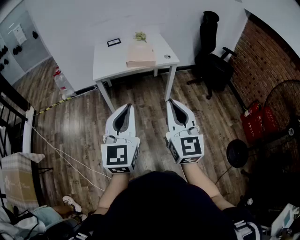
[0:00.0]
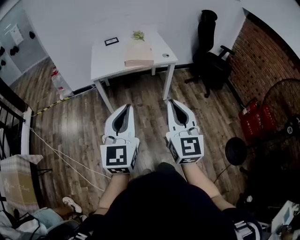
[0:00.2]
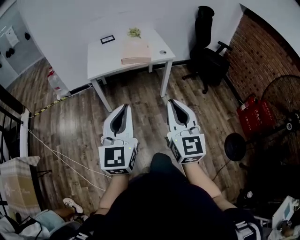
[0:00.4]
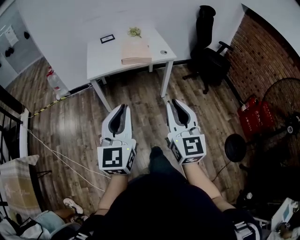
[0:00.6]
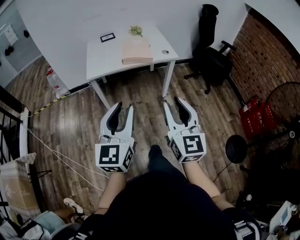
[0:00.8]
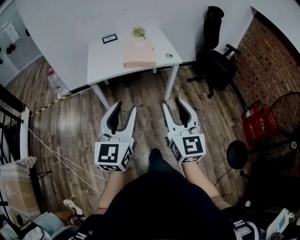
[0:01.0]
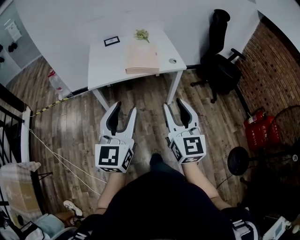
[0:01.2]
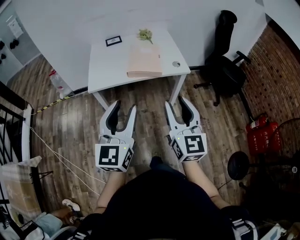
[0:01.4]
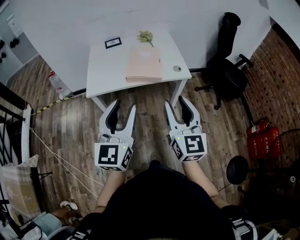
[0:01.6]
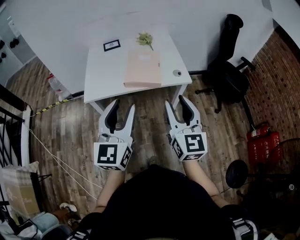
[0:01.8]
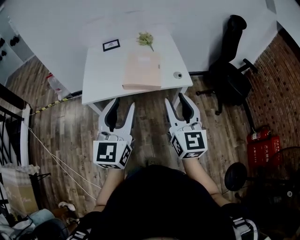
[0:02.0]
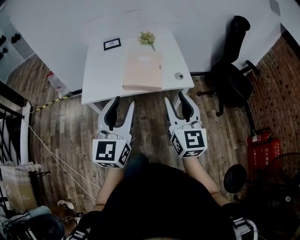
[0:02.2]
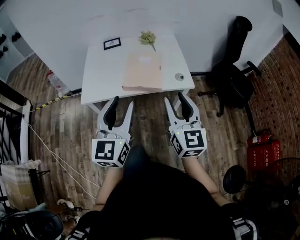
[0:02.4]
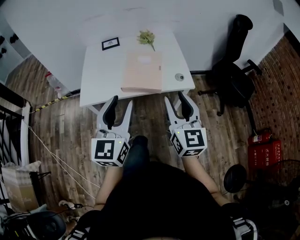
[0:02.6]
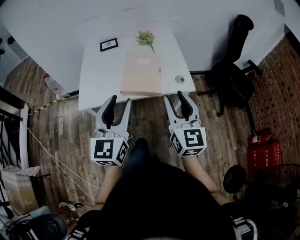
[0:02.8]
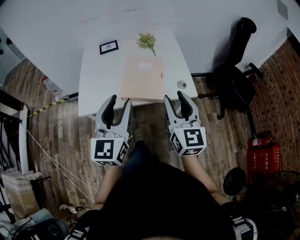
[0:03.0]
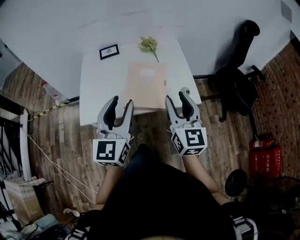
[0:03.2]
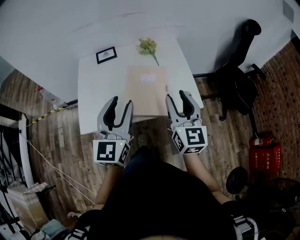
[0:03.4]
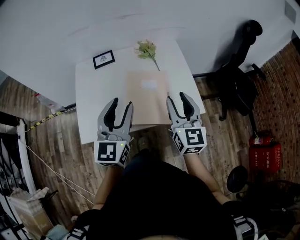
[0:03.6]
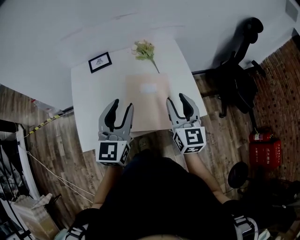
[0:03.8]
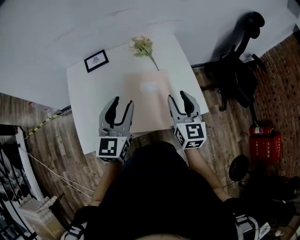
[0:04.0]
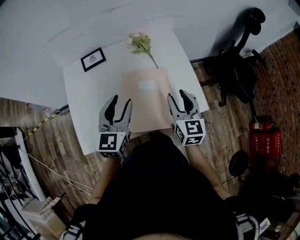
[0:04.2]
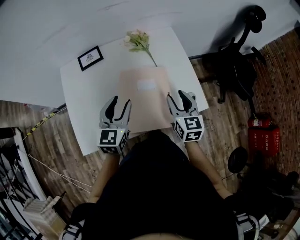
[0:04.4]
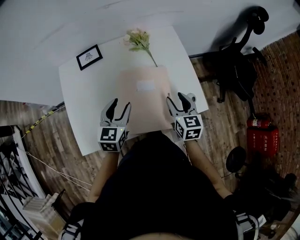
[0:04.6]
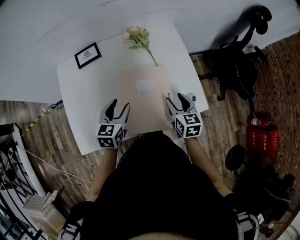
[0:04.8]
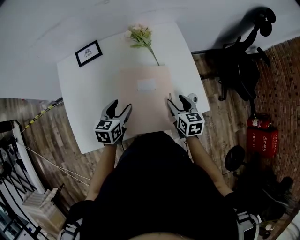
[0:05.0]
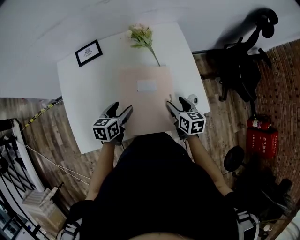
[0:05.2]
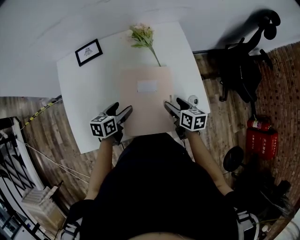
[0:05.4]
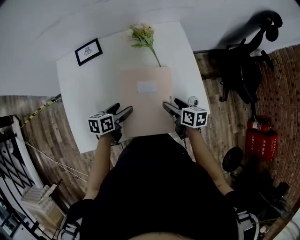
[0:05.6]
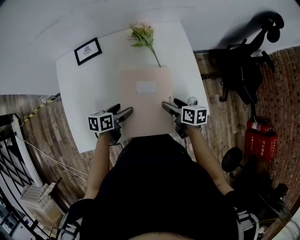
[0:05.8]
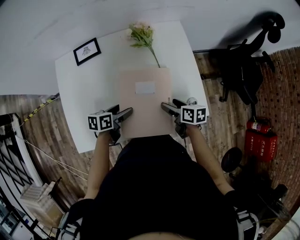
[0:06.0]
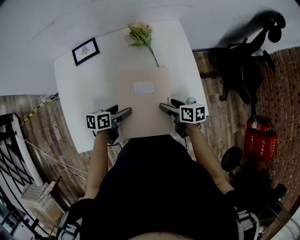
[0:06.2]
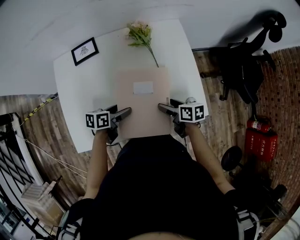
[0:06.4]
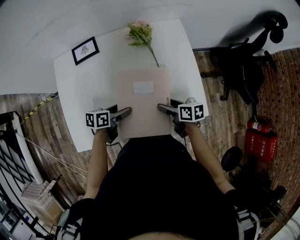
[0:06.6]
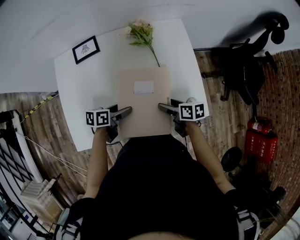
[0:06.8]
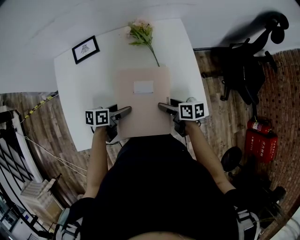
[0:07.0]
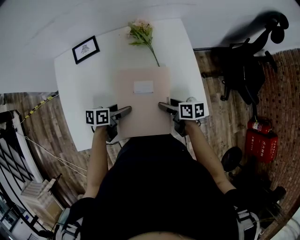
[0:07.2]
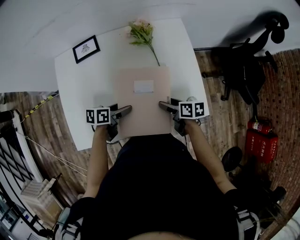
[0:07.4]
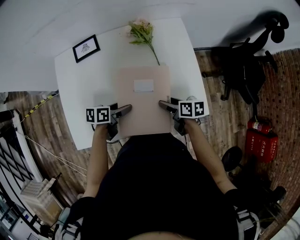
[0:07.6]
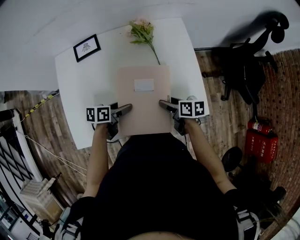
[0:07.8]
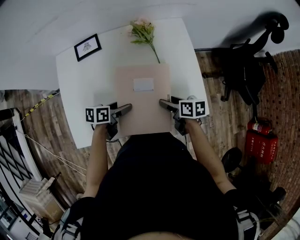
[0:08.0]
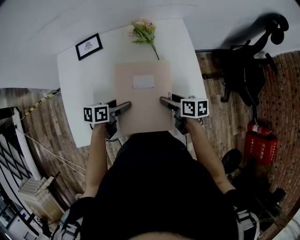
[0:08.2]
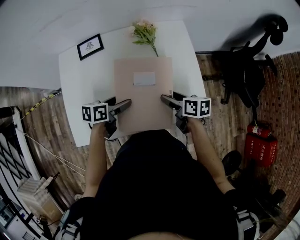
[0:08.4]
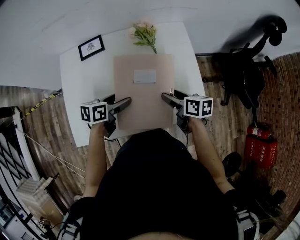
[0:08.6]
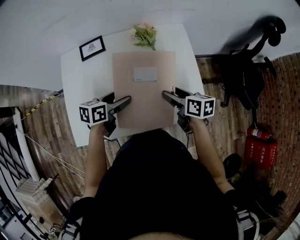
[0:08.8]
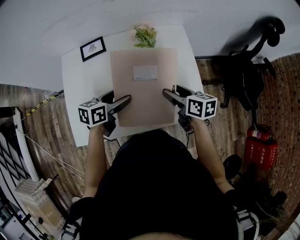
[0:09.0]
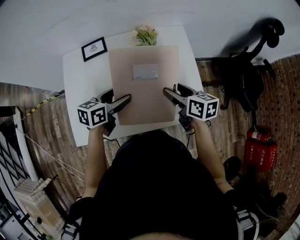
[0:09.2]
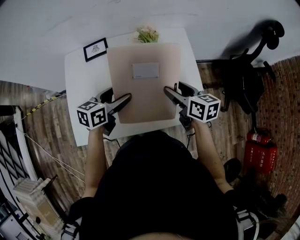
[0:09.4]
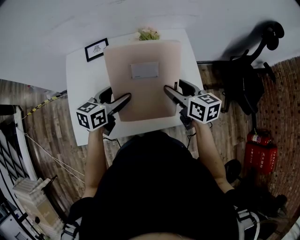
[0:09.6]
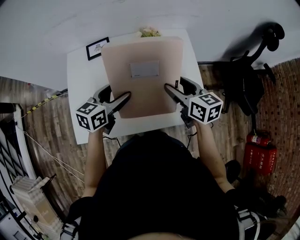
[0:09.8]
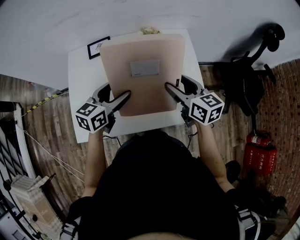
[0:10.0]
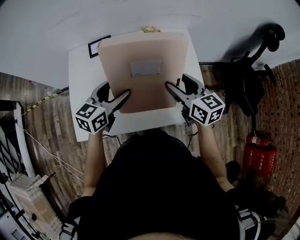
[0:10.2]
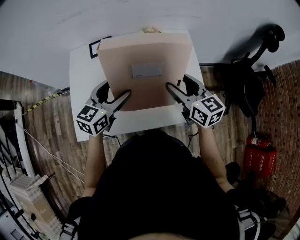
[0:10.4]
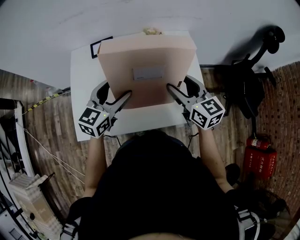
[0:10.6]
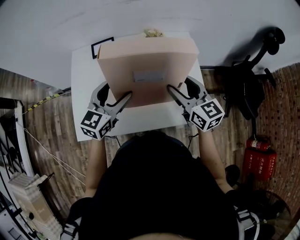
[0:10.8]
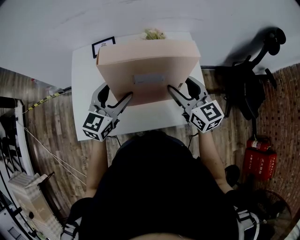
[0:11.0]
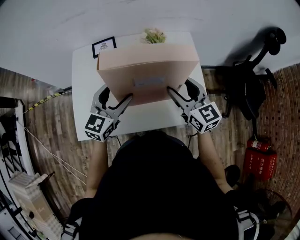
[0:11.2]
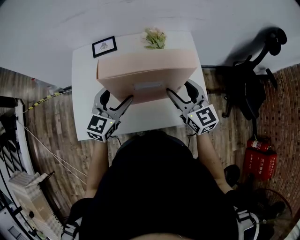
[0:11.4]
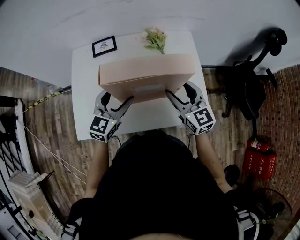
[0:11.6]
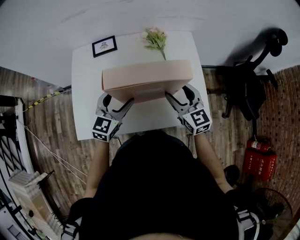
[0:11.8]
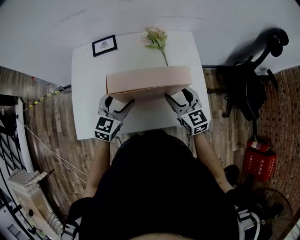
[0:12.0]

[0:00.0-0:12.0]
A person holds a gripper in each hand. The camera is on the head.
0:00.0 to 0:01.6: The grippers both shift forward by about 30 cm. The left gripper opens up; the right gripper opens up.
0:01.6 to 0:03.0: The grippers both shift forward by about 20 cm.
0:03.0 to 0:04.4: Both grippers move forward and downward, approximately 30 cm. The left gripper turns by roughly 20 degrees; the right gripper swivels some 20 degrees.
0:04.4 to 0:06.0: The two grippers go roughly 15 cm downward. The left gripper swivels about 50 degrees, and opens its fingers. Meanwhile the right gripper turns by approximately 50 degrees, and opens its fingers.
0:06.0 to 0:07.6: The grippers make only small movements.
0:07.6 to 0:09.0: The grippers both shift upward by some 10 cm. The left gripper swivels roughly 20 degrees, while the right gripper changes its angle by some 20 degrees.
0:09.0 to 0:10.4: The two grippers go about 10 cm upward. The left gripper turns by some 30 degrees. The right gripper changes its angle by approximately 30 degrees.
0:10.4 to 0:12.0: Both grippers travel together downward, about 10 cm.

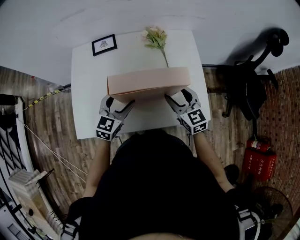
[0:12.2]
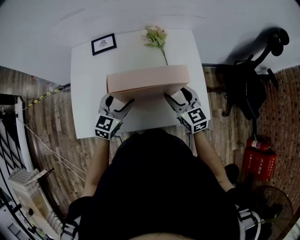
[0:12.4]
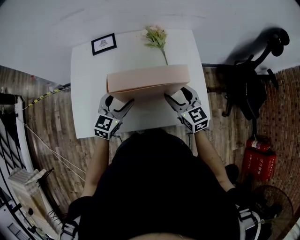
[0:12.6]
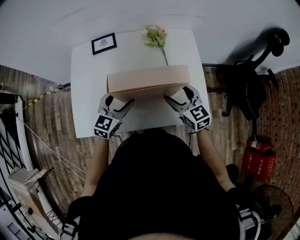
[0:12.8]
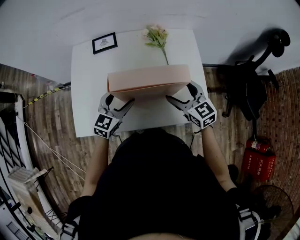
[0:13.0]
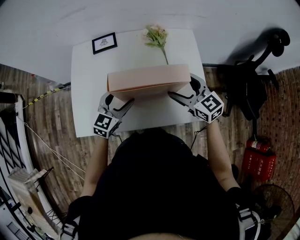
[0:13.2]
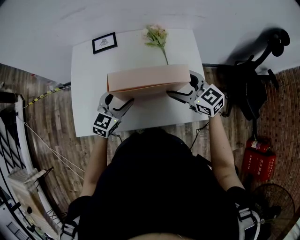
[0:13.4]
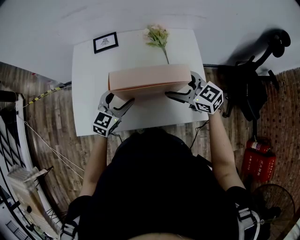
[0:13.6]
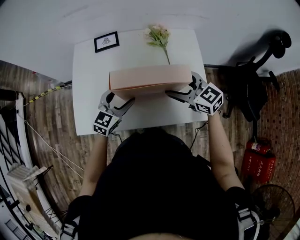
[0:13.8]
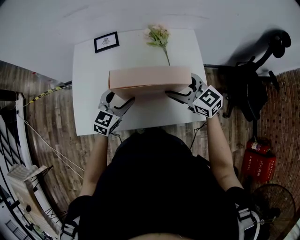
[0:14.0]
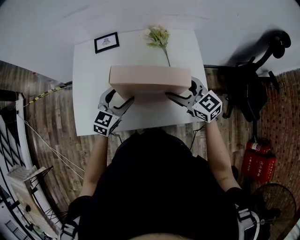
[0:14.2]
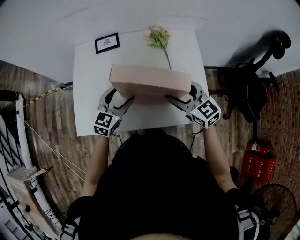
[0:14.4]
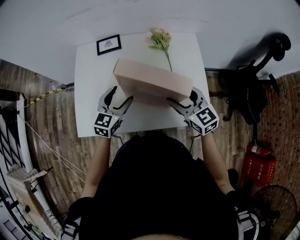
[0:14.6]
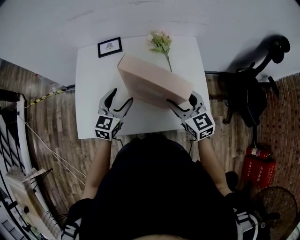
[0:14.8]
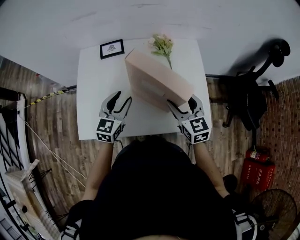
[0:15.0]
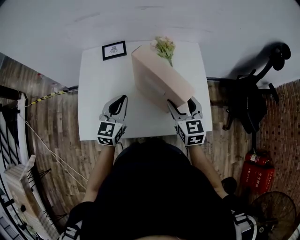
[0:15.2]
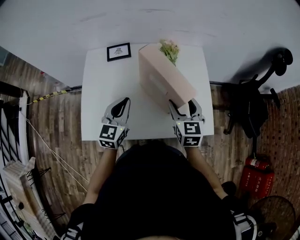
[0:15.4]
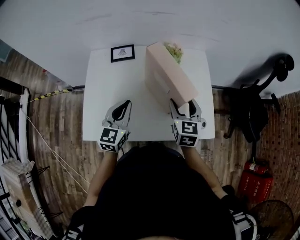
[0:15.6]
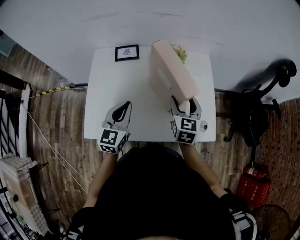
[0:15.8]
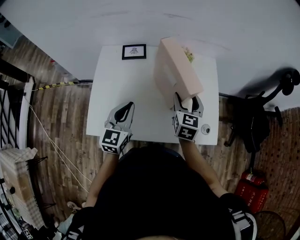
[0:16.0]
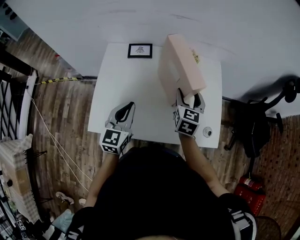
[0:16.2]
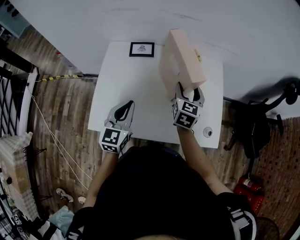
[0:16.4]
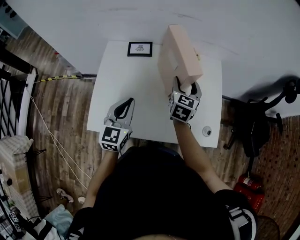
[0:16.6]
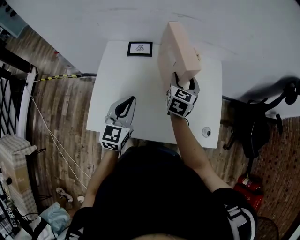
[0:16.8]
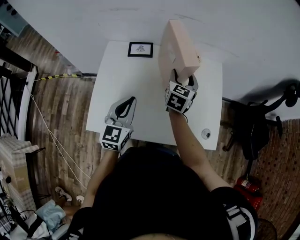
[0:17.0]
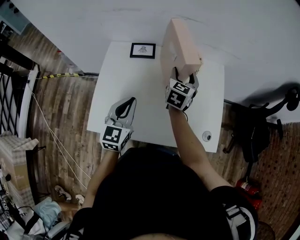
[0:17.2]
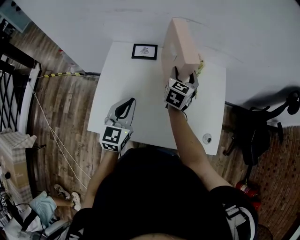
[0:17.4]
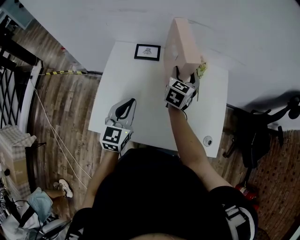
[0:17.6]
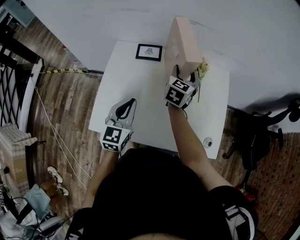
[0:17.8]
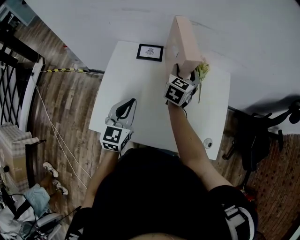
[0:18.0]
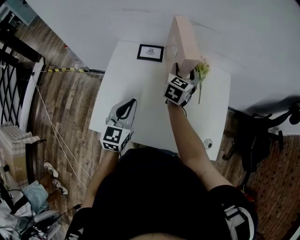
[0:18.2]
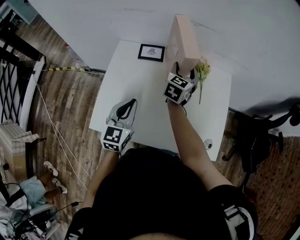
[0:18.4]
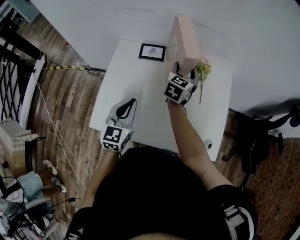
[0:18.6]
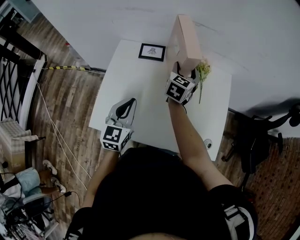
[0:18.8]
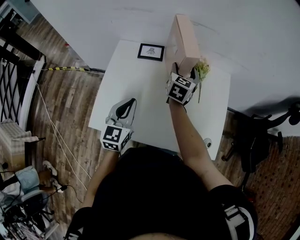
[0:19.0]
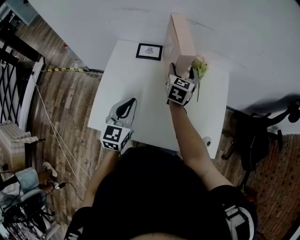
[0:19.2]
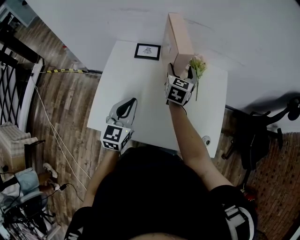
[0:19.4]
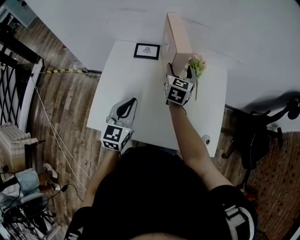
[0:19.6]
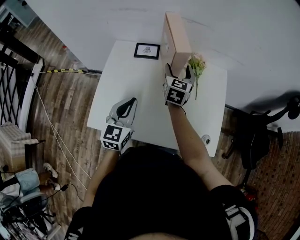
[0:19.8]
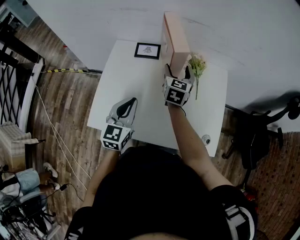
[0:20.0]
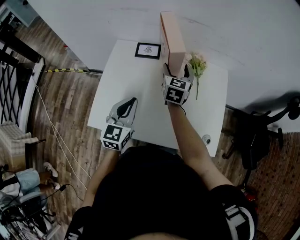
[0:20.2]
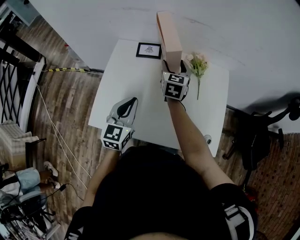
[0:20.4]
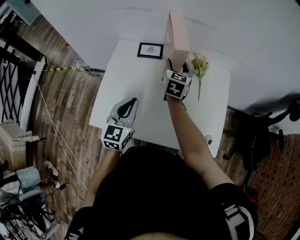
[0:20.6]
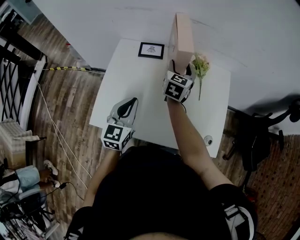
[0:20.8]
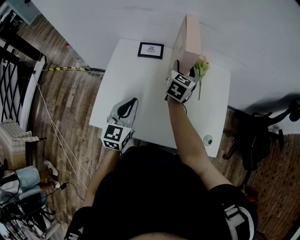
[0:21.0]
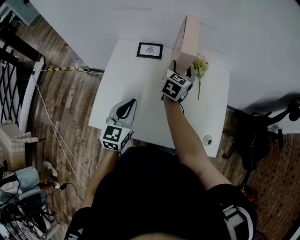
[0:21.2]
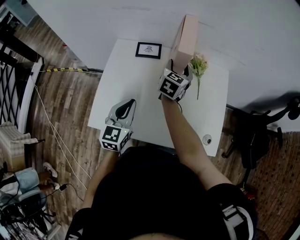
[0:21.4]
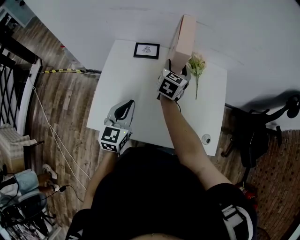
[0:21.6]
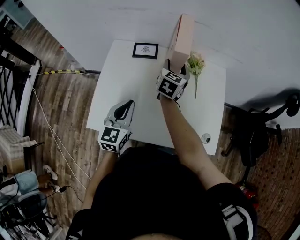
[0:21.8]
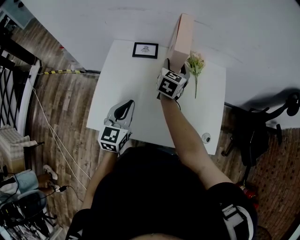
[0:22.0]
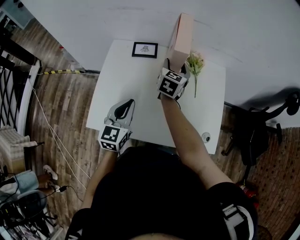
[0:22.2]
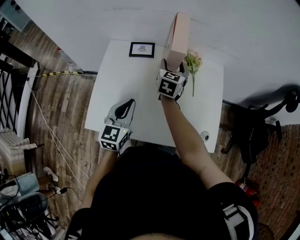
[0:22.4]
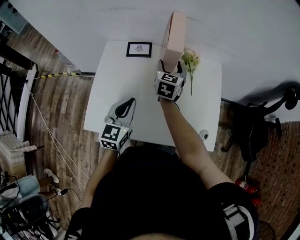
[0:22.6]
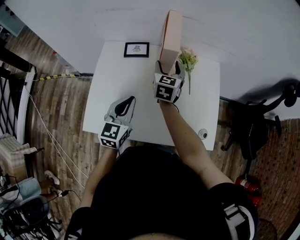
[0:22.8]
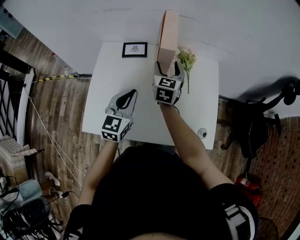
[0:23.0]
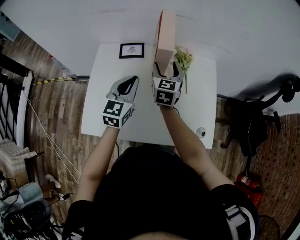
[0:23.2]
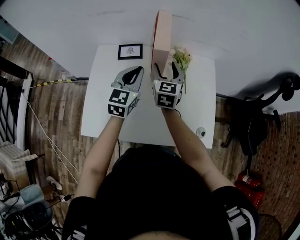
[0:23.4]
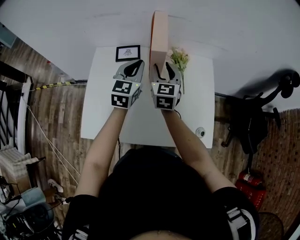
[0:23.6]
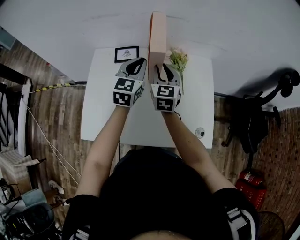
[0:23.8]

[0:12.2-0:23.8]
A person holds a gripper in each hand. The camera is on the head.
0:12.2 to 0:13.6: The right gripper swivels roughly 30 degrees.
0:13.6 to 0:15.0: The left gripper closes up; the right gripper turns by approximately 30 degrees.
0:15.0 to 0:16.6: The left gripper moves to the left, roughly 5 cm, and closes, while the right gripper heads forward and to the left, covering about 15 cm, and changes its angle by approximately 20 degrees.
0:16.6 to 0:18.0: The right gripper goes roughly 10 cm forward and to the left.
0:18.0 to 0:22.4: The grippers move only a little.
0:22.4 to 0:23.8: The right gripper closes its fingers. Meanwhile the left gripper shifts approximately 20 cm forward.
